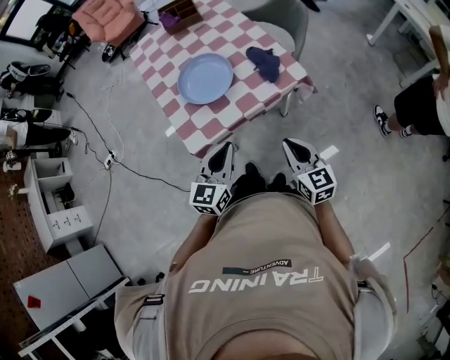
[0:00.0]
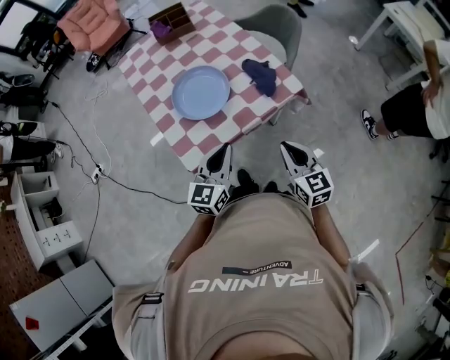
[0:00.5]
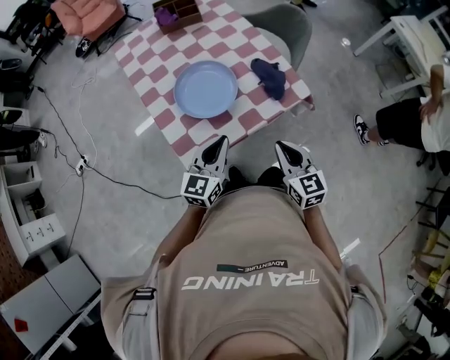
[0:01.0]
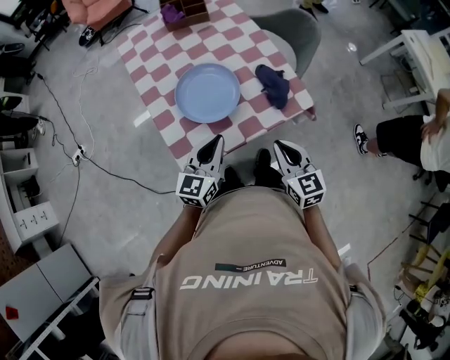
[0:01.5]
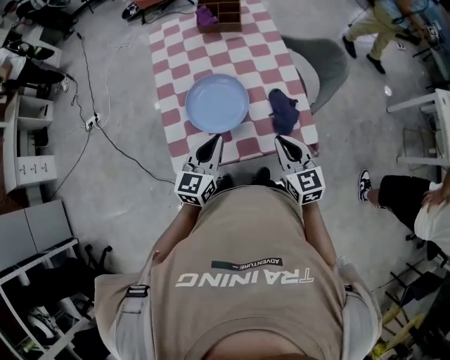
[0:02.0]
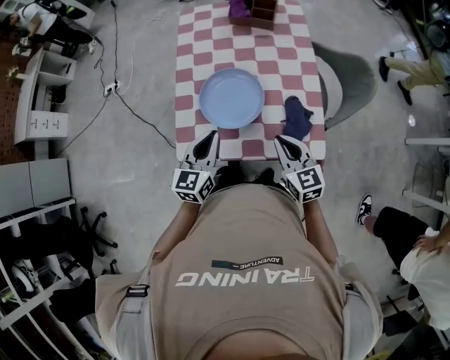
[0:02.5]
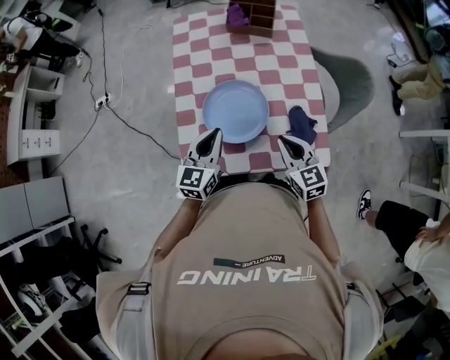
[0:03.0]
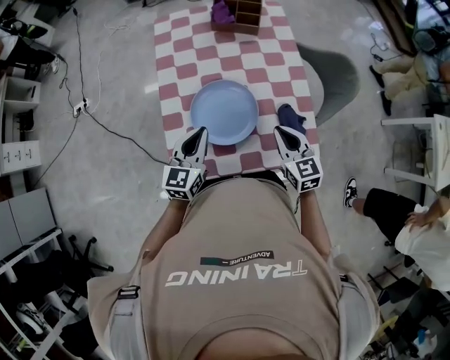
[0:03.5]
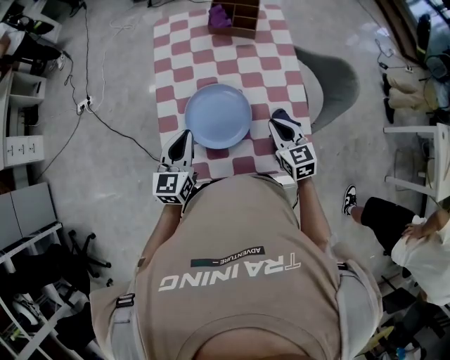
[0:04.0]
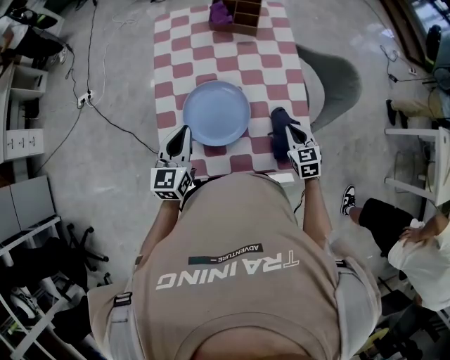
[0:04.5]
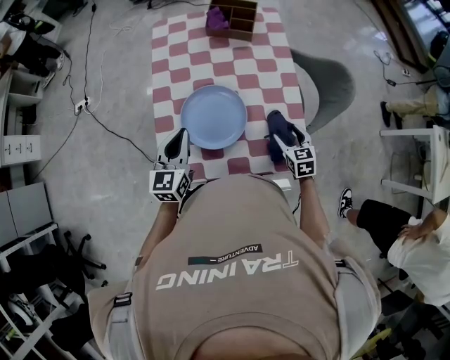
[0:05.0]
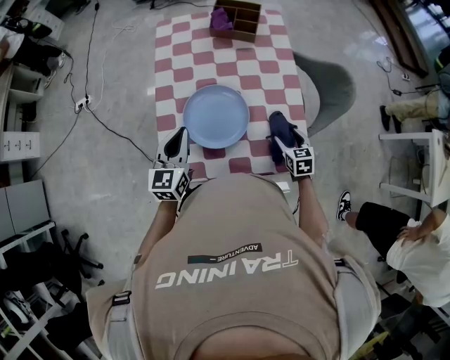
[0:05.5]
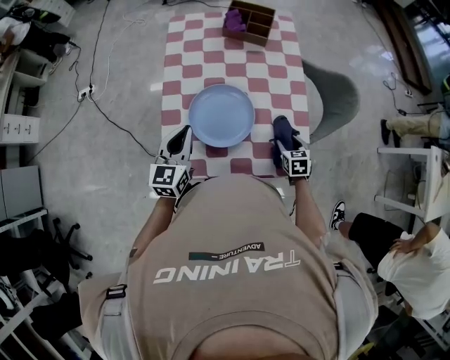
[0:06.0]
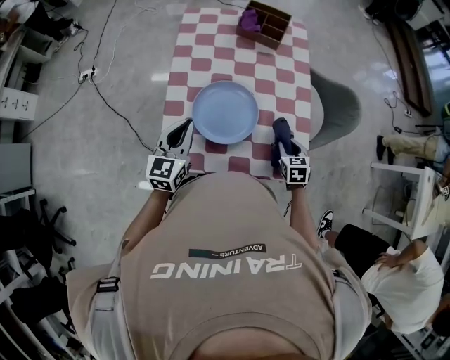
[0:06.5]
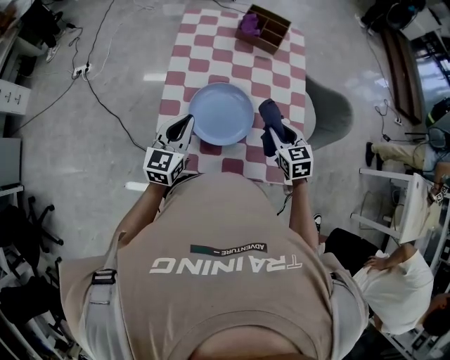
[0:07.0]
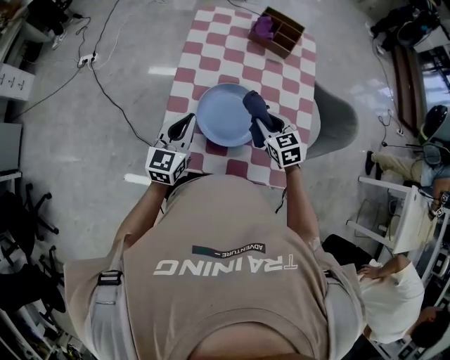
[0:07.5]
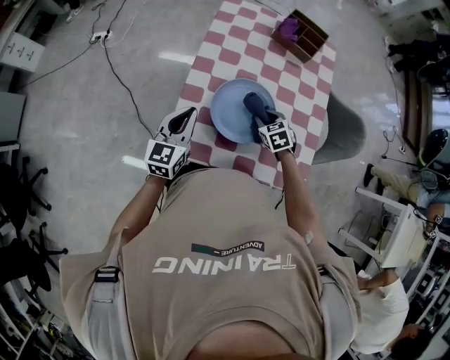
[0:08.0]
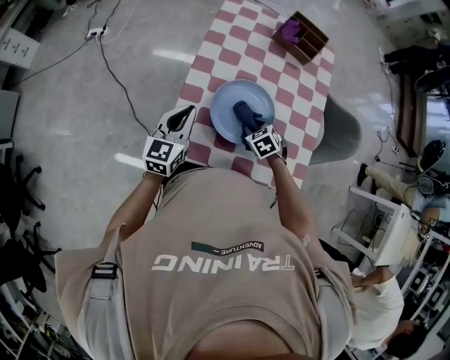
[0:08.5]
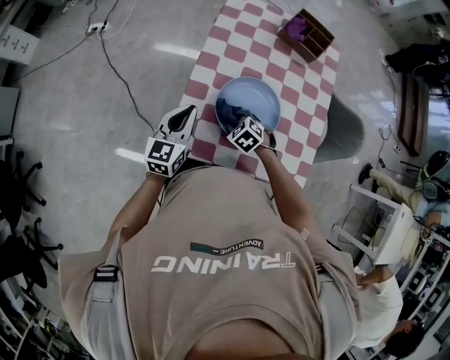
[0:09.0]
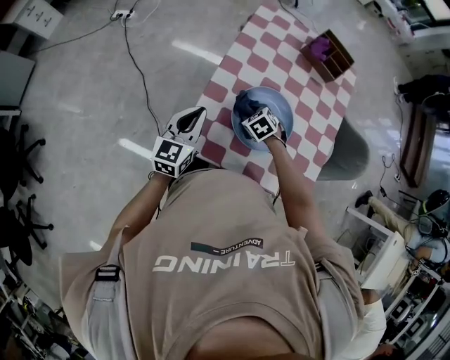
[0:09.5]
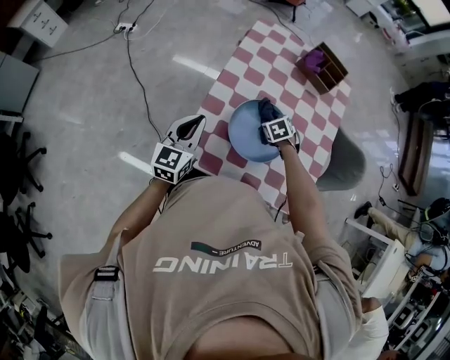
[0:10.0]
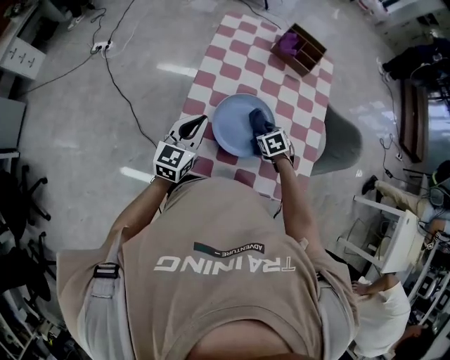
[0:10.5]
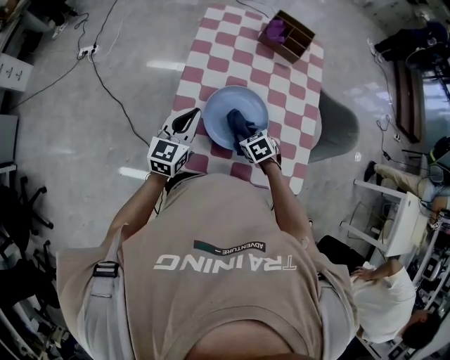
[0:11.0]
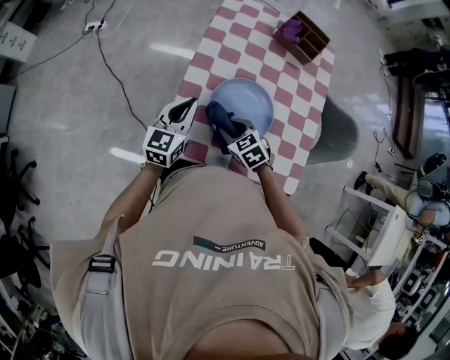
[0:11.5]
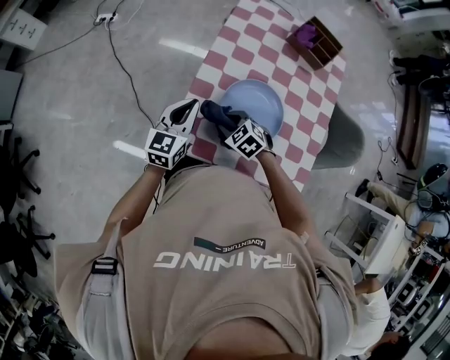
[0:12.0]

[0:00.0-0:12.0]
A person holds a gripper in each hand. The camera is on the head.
0:00.0 to 0:02.0: Both grippers travel together forward, approximately 20 cm.
0:02.0 to 0:04.0: The right gripper shifts about 15 cm forward. The left gripper shifts about 15 cm forward and to the left.
0:04.0 to 0:06.0: The right gripper goes about 15 cm downward and to the right, rotates some 30 degrees, and opens.
0:06.0 to 0:08.0: The right gripper heads to the left and forward, covering roughly 20 cm, rotates roughly 30 degrees, and closes up. Meanwhile the left gripper heads to the left, covering approximately 5 cm.
0:08.0 to 0:10.0: The right gripper heads forward, covering about 5 cm, and travels to the left and back again, some 15 cm each way.
0:10.0 to 0:12.0: The left gripper moves some 10 cm to the right and comes back. The right gripper shifts roughly 15 cm to the left and backward, and changes its angle by roughly 30 degrees.

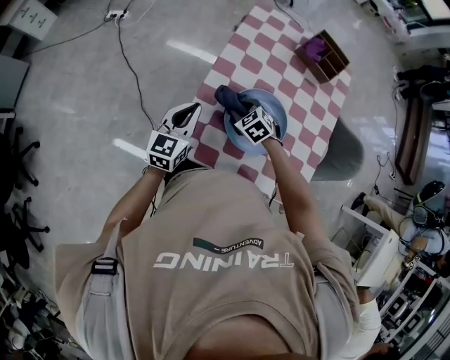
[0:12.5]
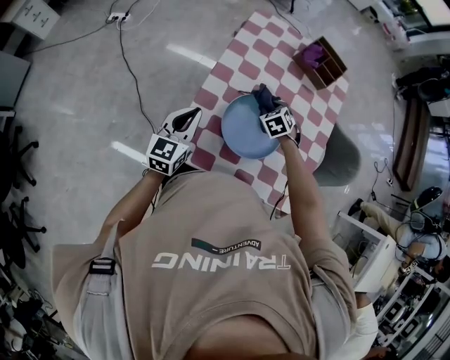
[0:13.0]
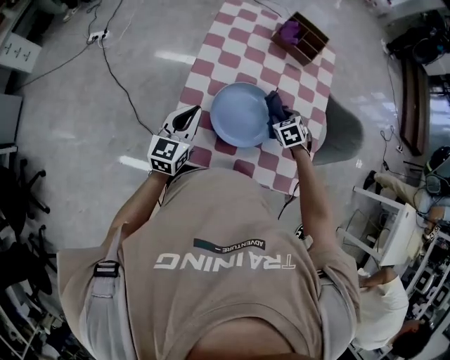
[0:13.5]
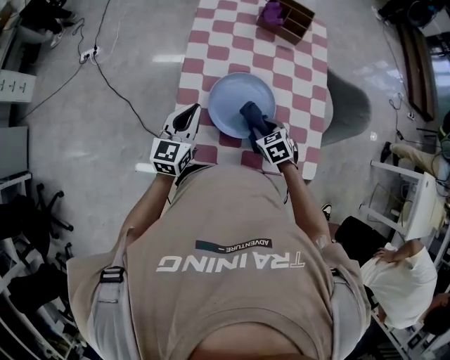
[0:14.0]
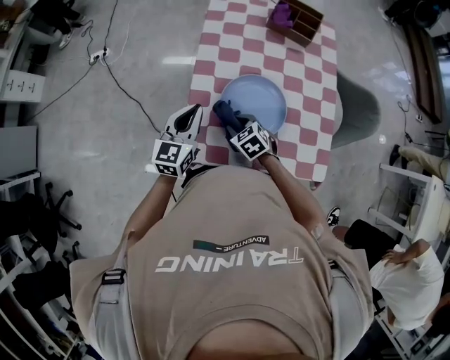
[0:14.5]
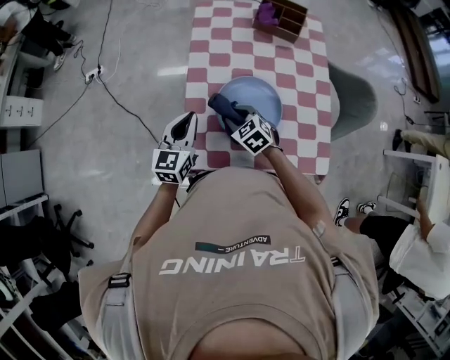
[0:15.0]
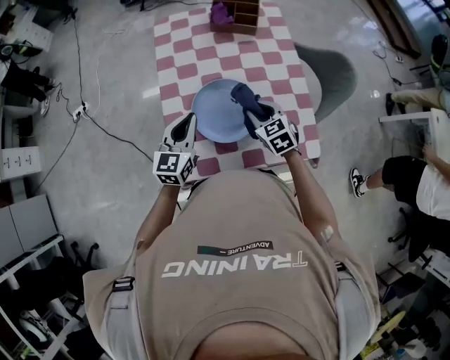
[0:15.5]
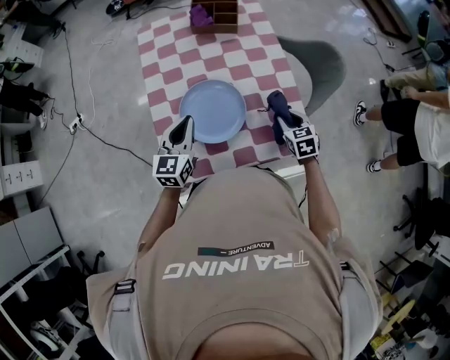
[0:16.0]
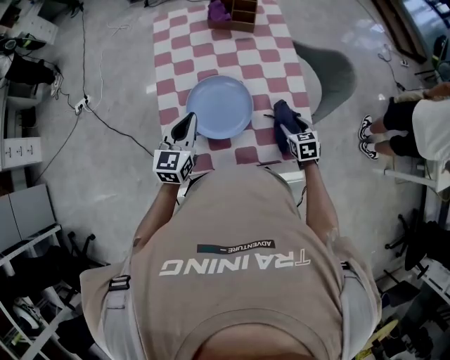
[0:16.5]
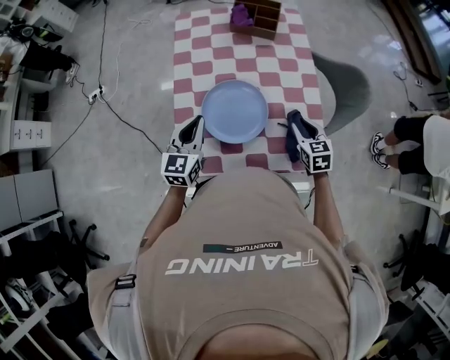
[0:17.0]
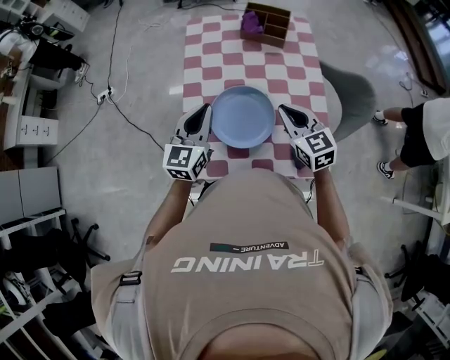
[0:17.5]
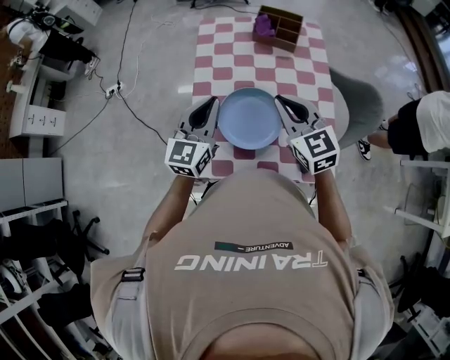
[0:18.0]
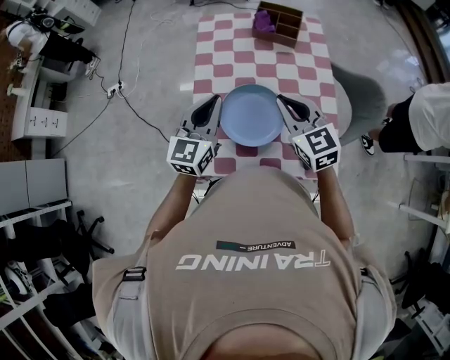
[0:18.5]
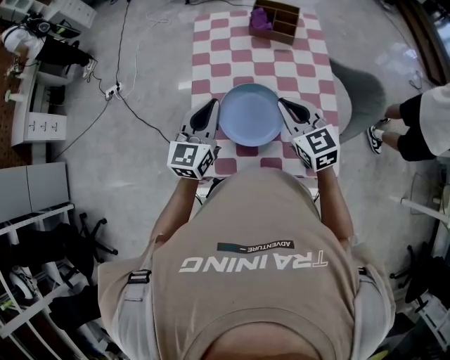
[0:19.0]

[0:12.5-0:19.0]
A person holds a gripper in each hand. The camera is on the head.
0:12.5 to 0:14.5: The right gripper moves backward, some 10 cm, travels to the right and back again, some 20 cm each way, and changes its angle by roughly 20 degrees.
0:14.5 to 0:17.0: The left gripper shifts by some 10 cm, while the right gripper goes up and down, some 10 cm each way, reversing 2 times, turns by approximately 40 degrees, and opens, then closes again.
0:17.0 to 0:19.0: The left gripper shifts about 10 cm upward, while the right gripper travels upward and to the left by roughly 20 cm, turns by about 30 degrees, and closes its fingers.

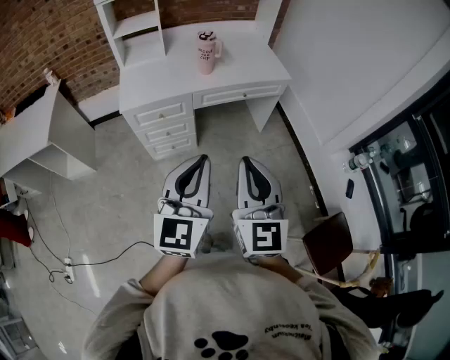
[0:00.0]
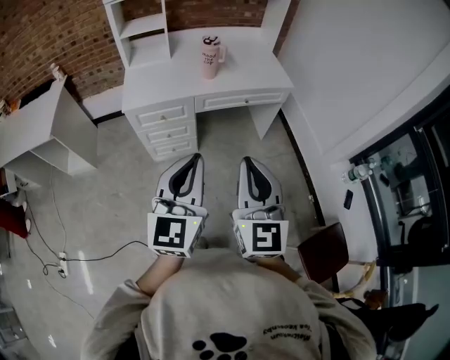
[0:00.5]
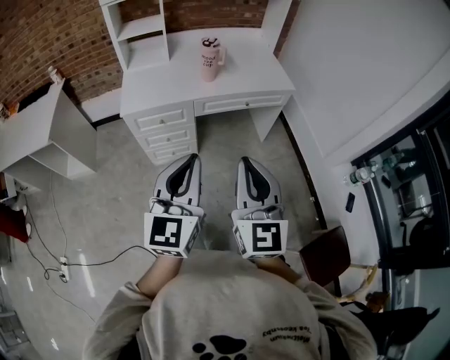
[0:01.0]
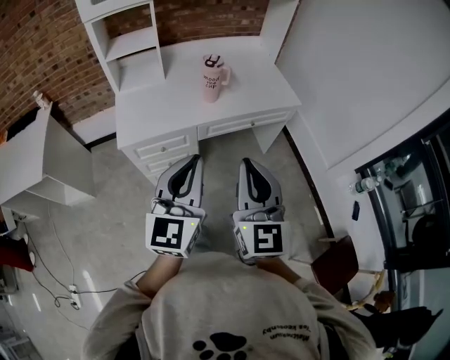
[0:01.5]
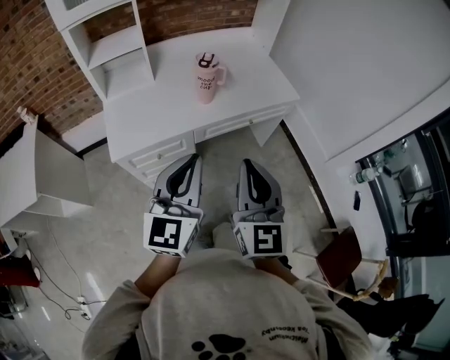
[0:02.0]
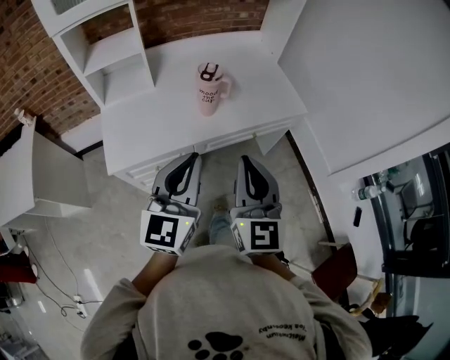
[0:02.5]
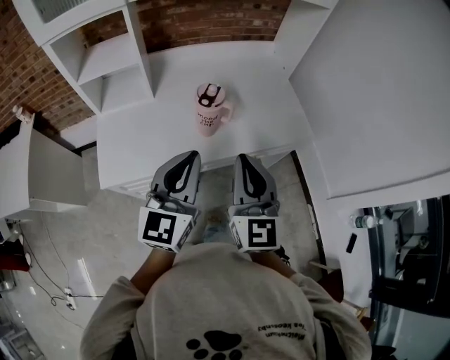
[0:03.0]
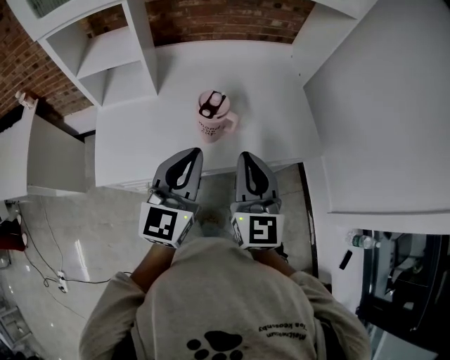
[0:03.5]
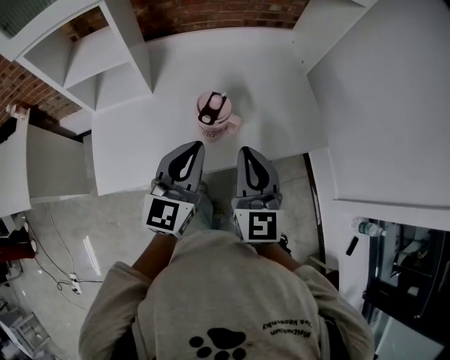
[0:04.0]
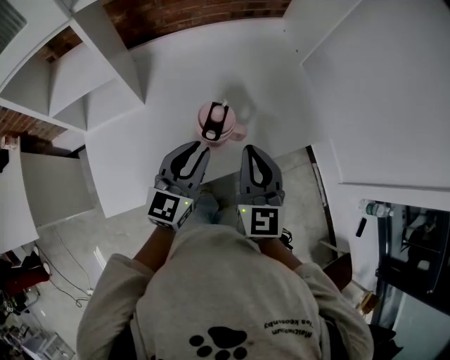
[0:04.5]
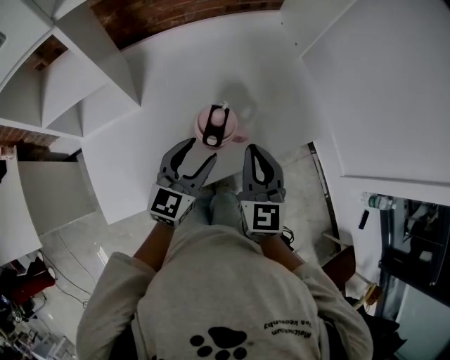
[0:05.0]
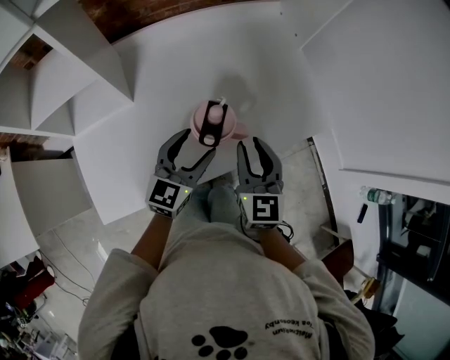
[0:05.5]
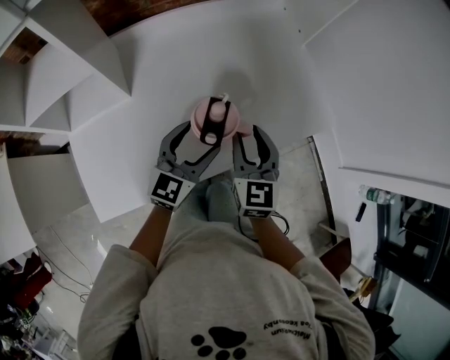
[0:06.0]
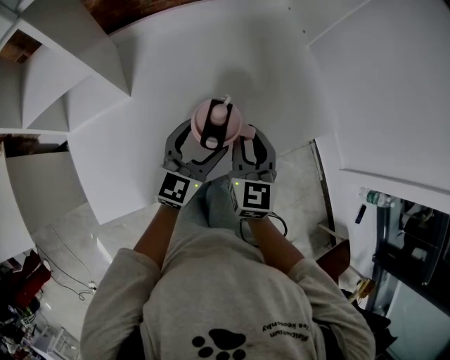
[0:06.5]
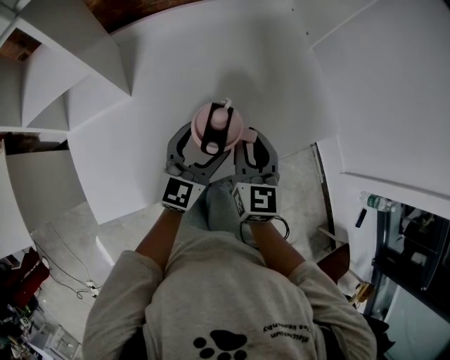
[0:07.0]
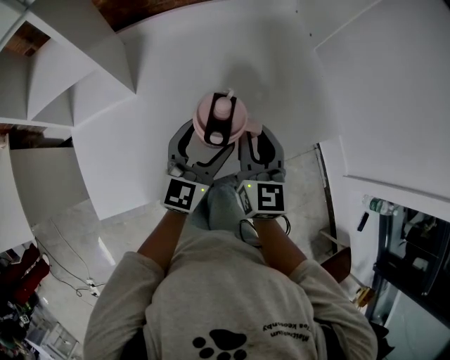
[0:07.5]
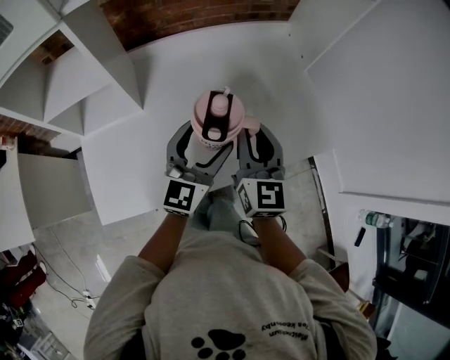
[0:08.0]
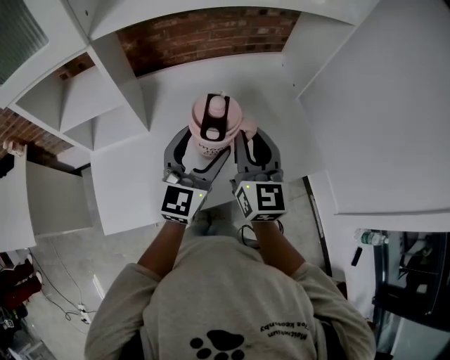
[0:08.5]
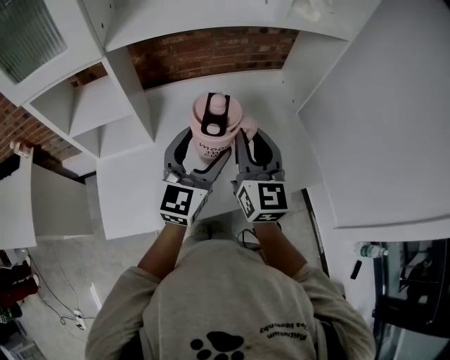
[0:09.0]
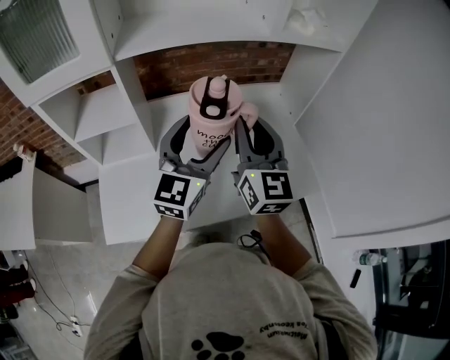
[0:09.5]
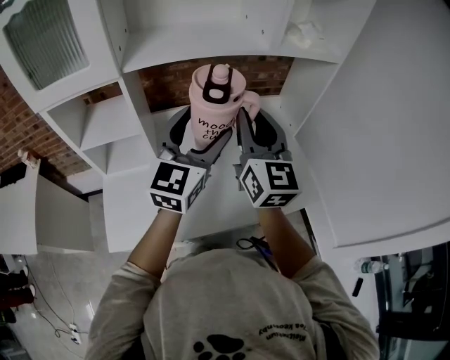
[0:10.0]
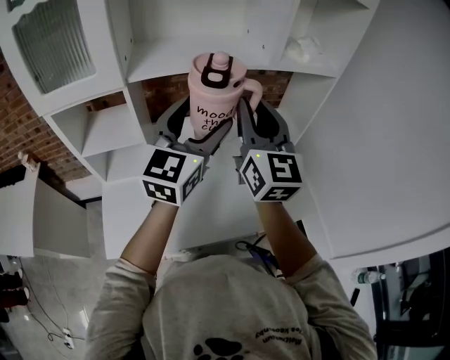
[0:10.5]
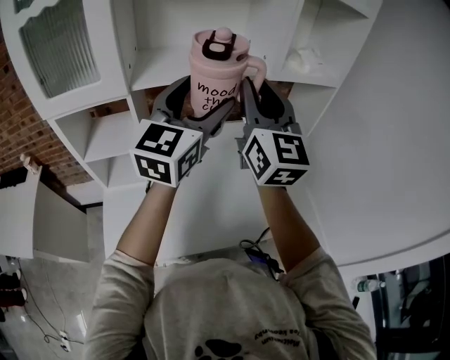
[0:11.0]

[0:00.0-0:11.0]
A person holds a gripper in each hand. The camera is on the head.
0:00.0 to 0:02.0: The left gripper moves forward and to the left, some 25 cm. Meanwhile the right gripper heads forward, covering approximately 20 cm.
0:02.0 to 0:03.5: Both grippers travel together forward, approximately 30 cm.
0:03.5 to 0:05.5: The two grippers go approximately 20 cm downward and forward. The right gripper opens its fingers. Meanwhile the left gripper changes its angle by roughly 30 degrees, and opens its fingers.
0:05.5 to 0:07.5: The grippers make only small movements.
0:07.5 to 0:09.0: Both grippers move upward, approximately 15 cm.
0:09.0 to 0:11.0: The two grippers go approximately 20 cm upward.
